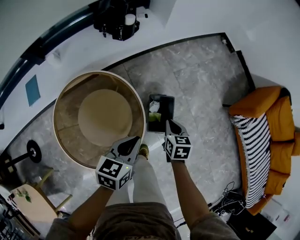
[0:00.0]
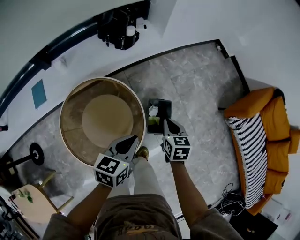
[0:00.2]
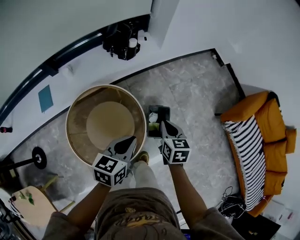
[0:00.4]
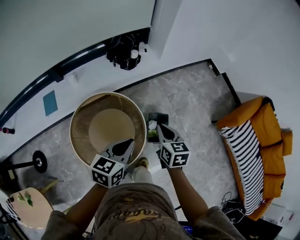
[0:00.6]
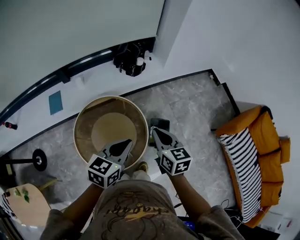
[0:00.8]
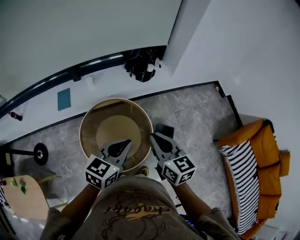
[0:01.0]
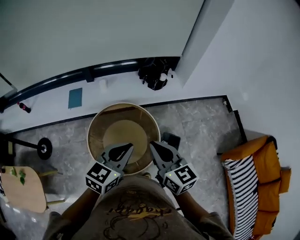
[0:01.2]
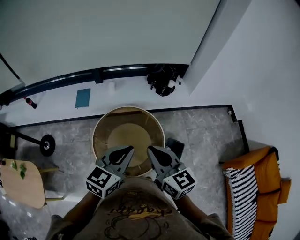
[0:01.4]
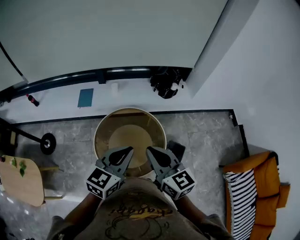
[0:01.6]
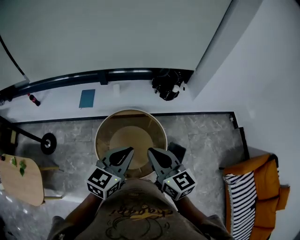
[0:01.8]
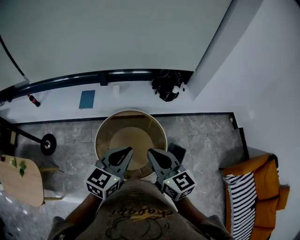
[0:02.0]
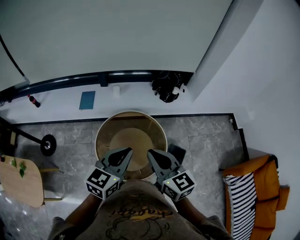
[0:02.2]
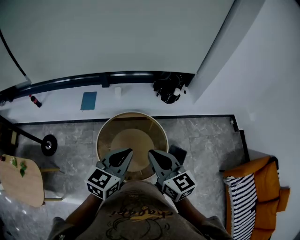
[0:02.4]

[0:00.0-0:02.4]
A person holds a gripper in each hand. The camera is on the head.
0:00.0 to 0:01.2: The two grippers go approximately 35 cm upward. The right gripper points its fingers some 40 degrees further upward, while the left gripper turns by some 30 degrees.
0:01.2 to 0:02.4: Both grippers move to the left, about 5 cm.

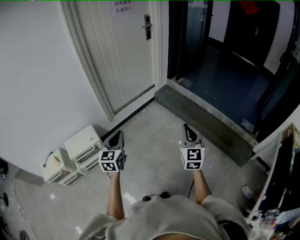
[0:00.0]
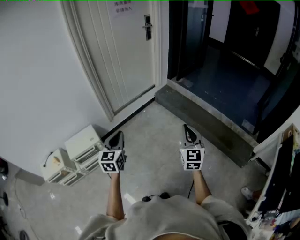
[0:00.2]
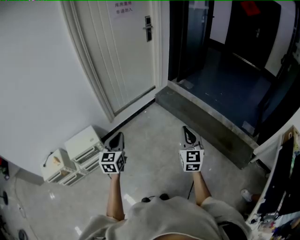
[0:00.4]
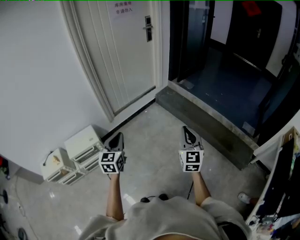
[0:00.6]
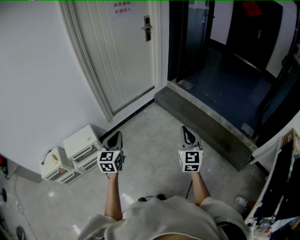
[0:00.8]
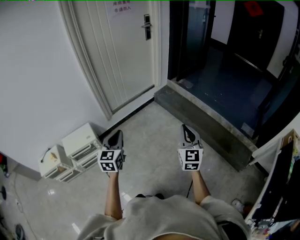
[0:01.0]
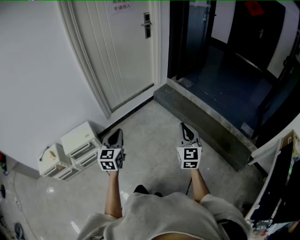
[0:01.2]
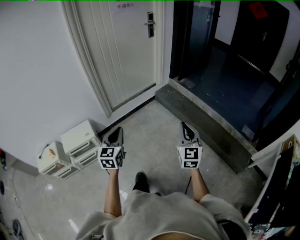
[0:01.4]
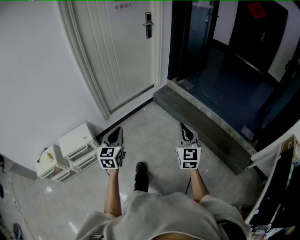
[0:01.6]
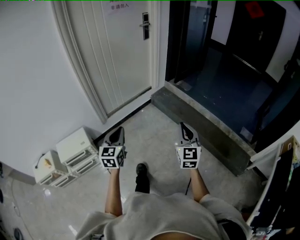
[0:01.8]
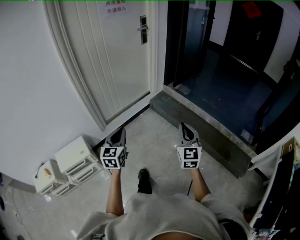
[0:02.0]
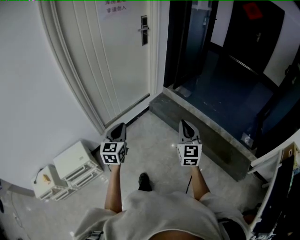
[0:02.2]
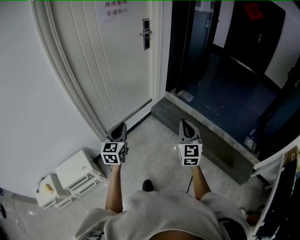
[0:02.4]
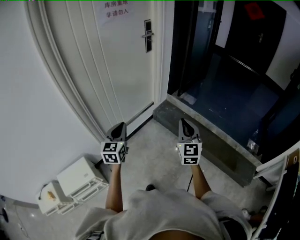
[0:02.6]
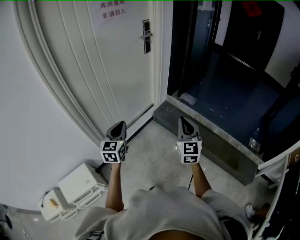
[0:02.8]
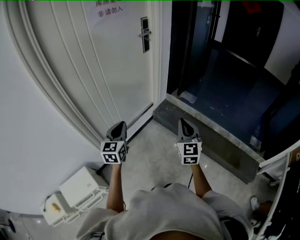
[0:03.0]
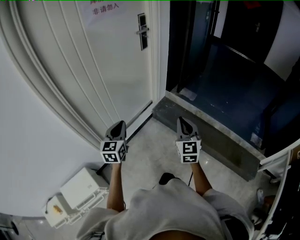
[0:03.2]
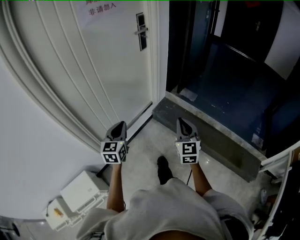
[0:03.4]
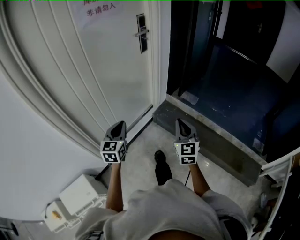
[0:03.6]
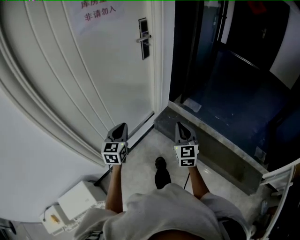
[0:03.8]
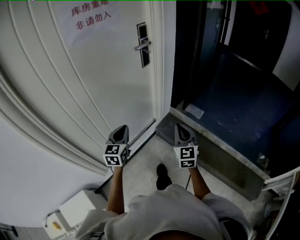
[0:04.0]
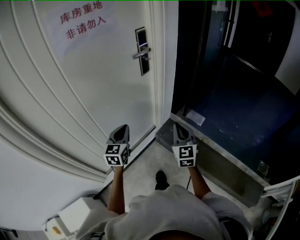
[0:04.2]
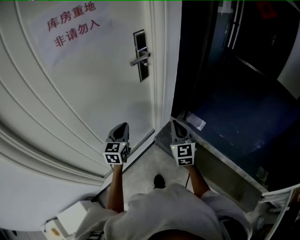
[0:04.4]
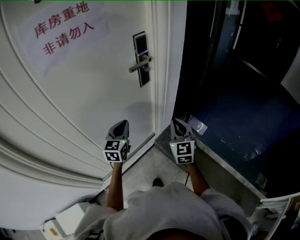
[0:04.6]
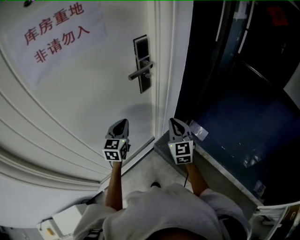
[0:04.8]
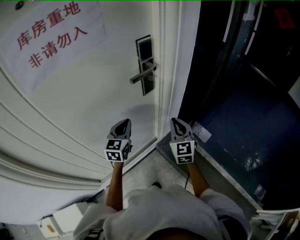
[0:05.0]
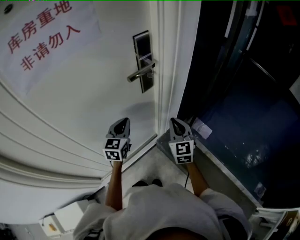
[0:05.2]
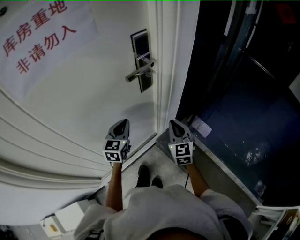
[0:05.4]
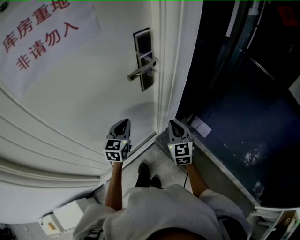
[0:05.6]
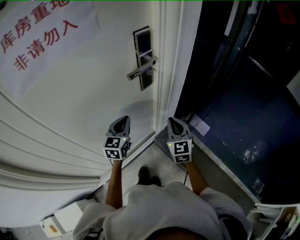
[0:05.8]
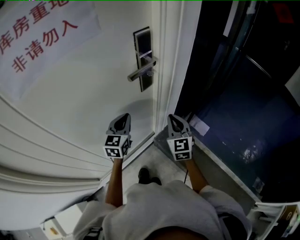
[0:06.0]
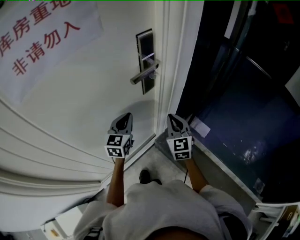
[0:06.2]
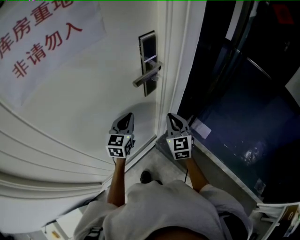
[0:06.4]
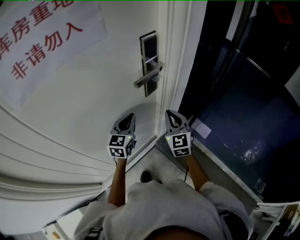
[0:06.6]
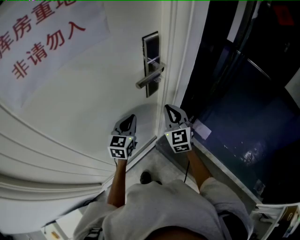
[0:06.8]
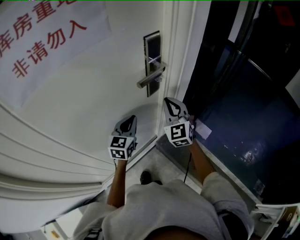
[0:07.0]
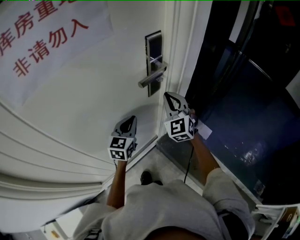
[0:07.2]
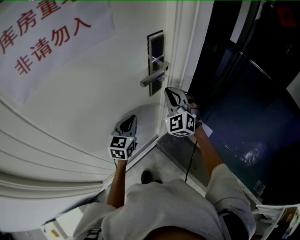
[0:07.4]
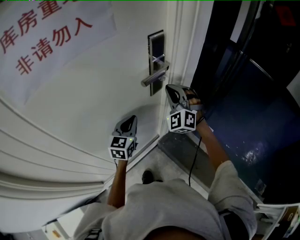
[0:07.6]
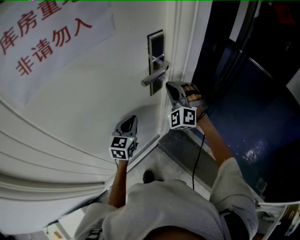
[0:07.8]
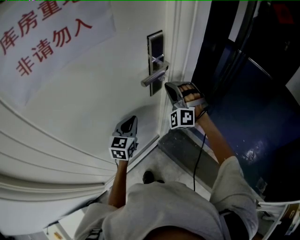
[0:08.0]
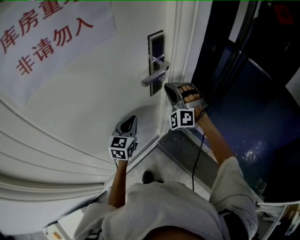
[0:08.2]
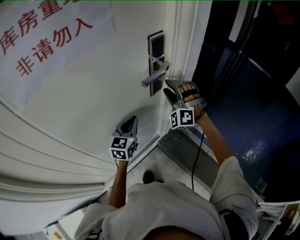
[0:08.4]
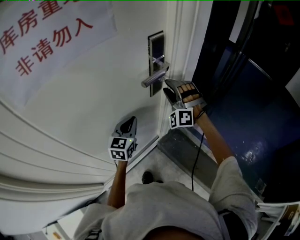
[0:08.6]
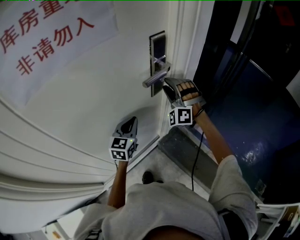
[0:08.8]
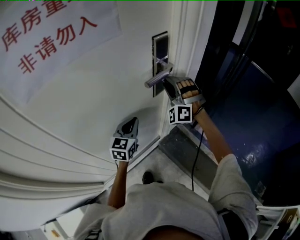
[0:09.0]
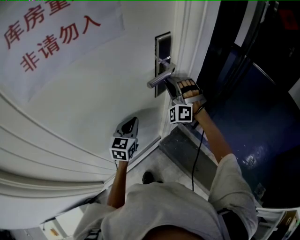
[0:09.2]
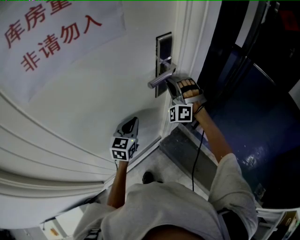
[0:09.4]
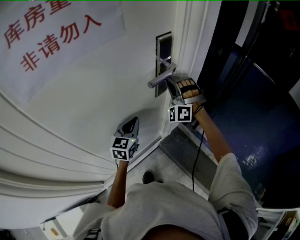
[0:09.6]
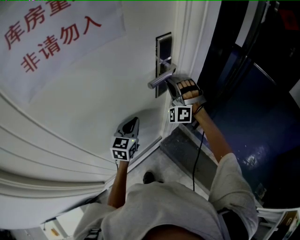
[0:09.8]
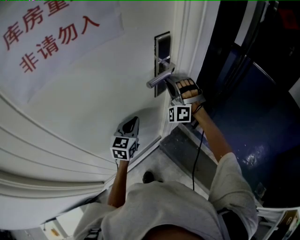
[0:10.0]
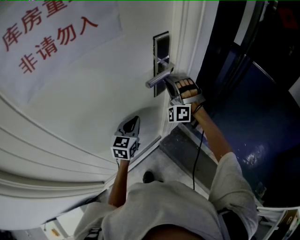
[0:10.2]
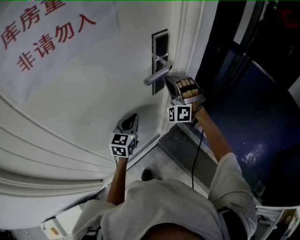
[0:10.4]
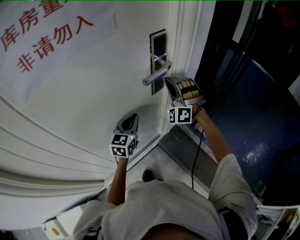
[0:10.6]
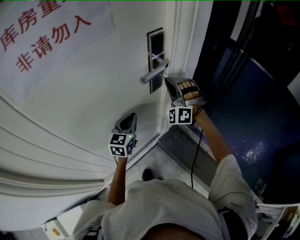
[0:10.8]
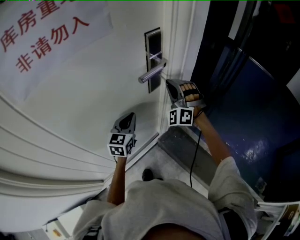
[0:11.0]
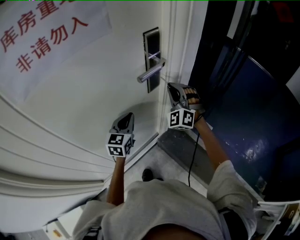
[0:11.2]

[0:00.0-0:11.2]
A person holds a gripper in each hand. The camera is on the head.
0:00.0 to 0:01.6: The left gripper shifts approximately 10 cm forward and to the right. Meanwhile the right gripper travels forward by approximately 5 cm.
0:01.6 to 0:03.2: The two grippers travel together, forward, about 50 cm.
0:03.2 to 0:04.8: The pair of grippers is taken forward, some 60 cm.
0:04.8 to 0:06.4: The grippers both shift forward by approximately 10 cm.
0:06.4 to 0:08.0: The right gripper heads forward and upward, covering about 10 cm, and rolls counterclockwise, seen from behind, by about 70 degrees.
0:08.0 to 0:09.6: The right gripper opens, then closes once more.
0:09.6 to 0:11.2: The right gripper travels to the right by approximately 5 cm, and changes its angle by some 20 degrees.

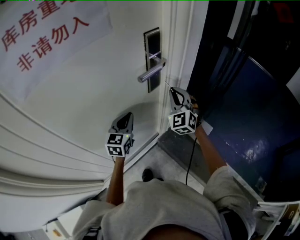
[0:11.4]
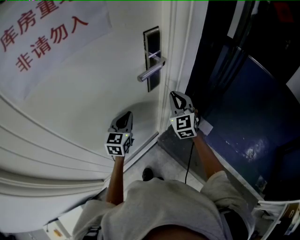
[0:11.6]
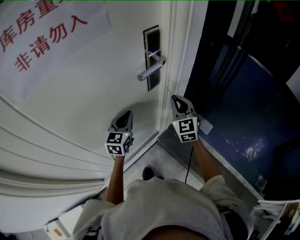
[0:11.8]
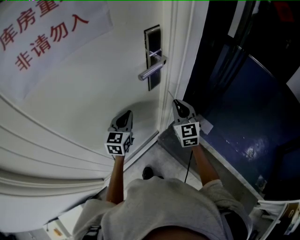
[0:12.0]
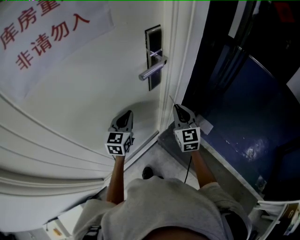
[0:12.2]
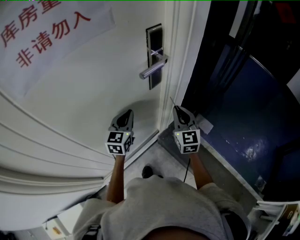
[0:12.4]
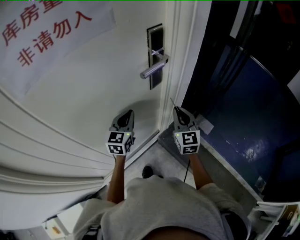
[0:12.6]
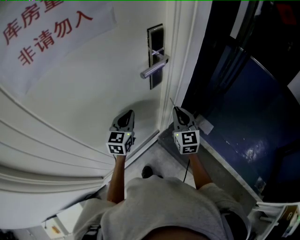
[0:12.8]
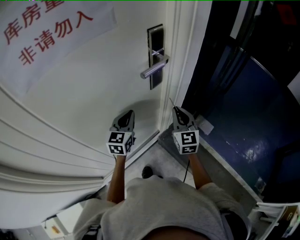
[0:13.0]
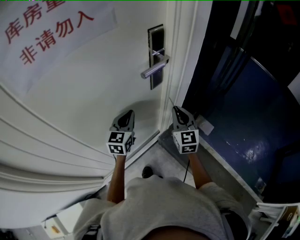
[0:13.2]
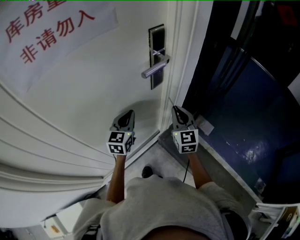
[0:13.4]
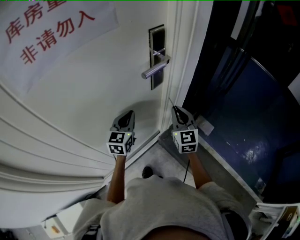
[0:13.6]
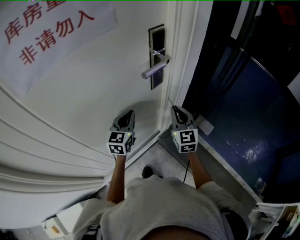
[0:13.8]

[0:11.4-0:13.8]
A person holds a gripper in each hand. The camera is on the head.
0:11.4 to 0:12.6: The right gripper goes about 10 cm backward, and swivels about 40 degrees.
0:12.6 to 0:13.8: The two grippers keep their place.

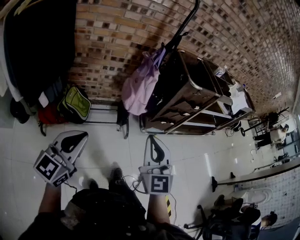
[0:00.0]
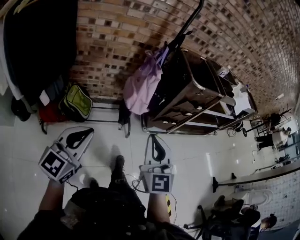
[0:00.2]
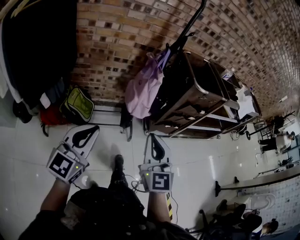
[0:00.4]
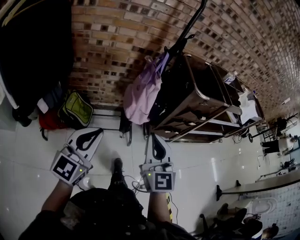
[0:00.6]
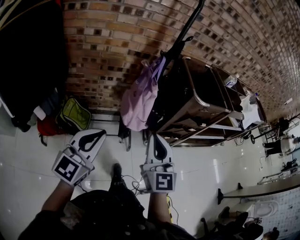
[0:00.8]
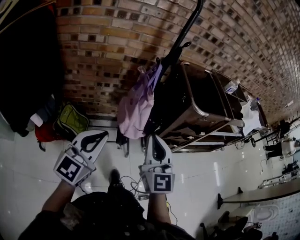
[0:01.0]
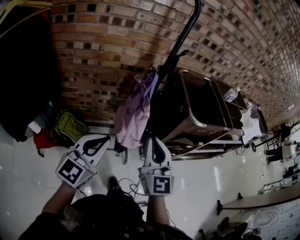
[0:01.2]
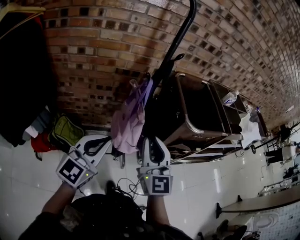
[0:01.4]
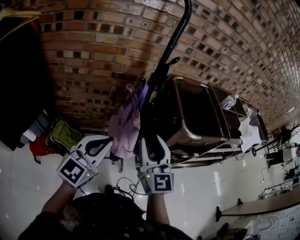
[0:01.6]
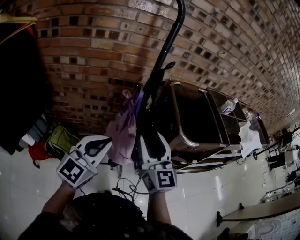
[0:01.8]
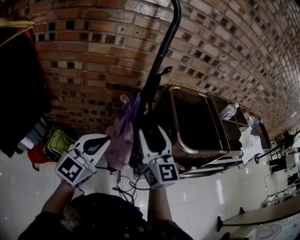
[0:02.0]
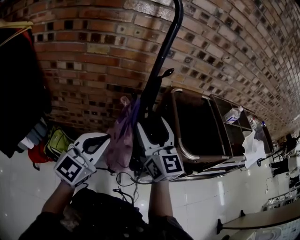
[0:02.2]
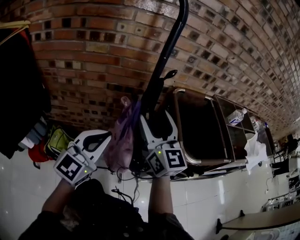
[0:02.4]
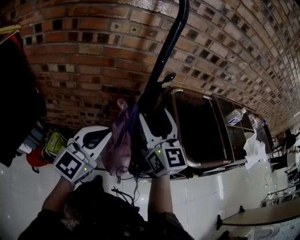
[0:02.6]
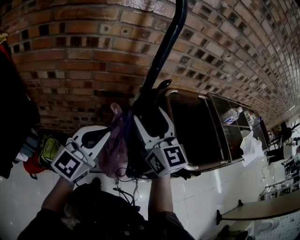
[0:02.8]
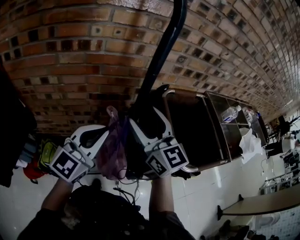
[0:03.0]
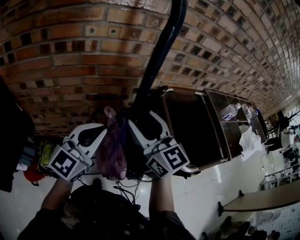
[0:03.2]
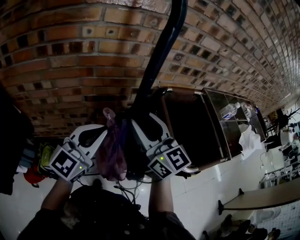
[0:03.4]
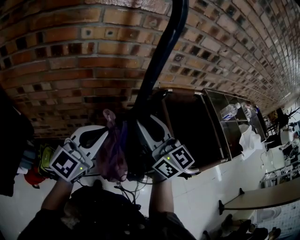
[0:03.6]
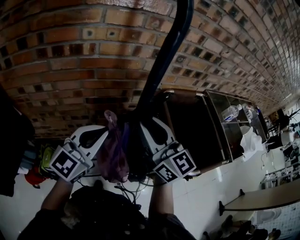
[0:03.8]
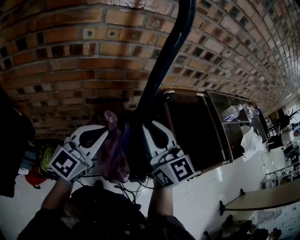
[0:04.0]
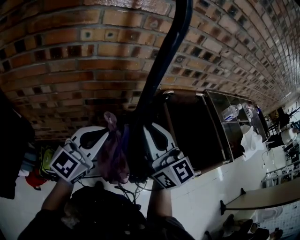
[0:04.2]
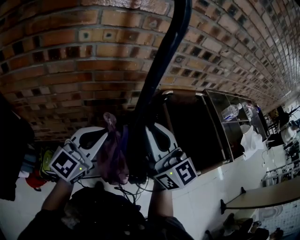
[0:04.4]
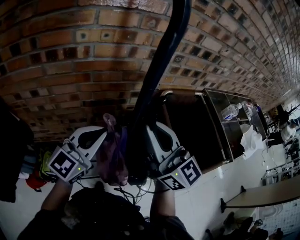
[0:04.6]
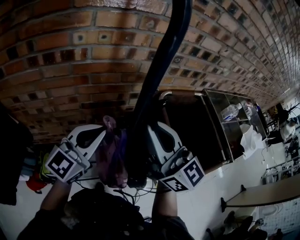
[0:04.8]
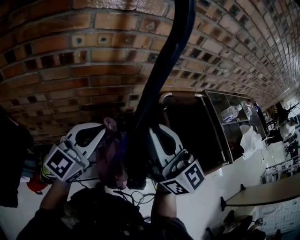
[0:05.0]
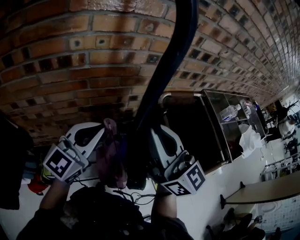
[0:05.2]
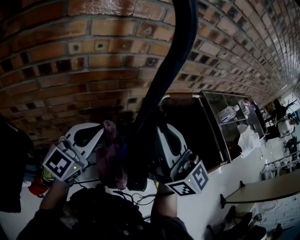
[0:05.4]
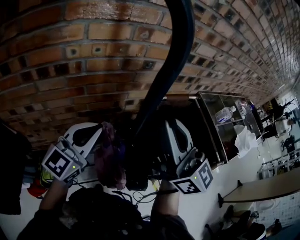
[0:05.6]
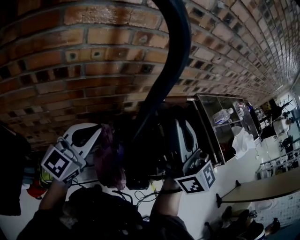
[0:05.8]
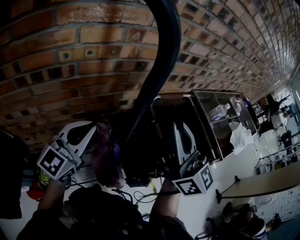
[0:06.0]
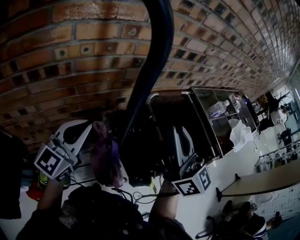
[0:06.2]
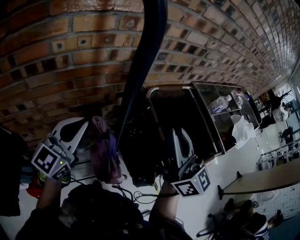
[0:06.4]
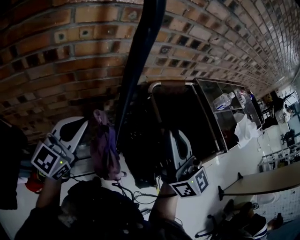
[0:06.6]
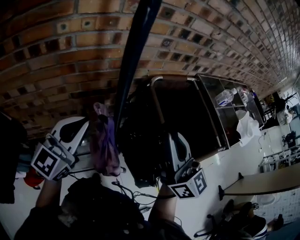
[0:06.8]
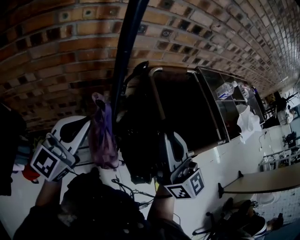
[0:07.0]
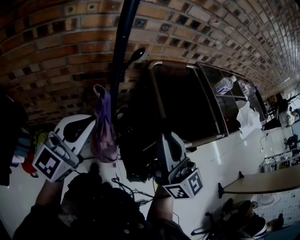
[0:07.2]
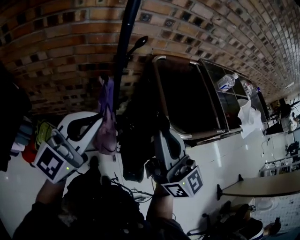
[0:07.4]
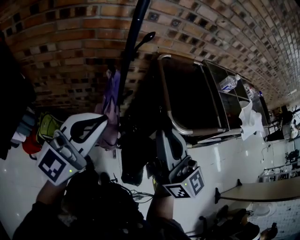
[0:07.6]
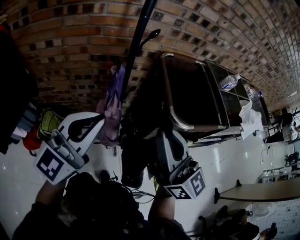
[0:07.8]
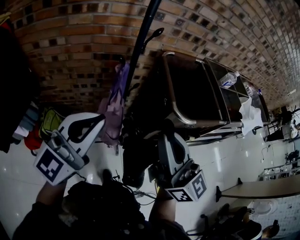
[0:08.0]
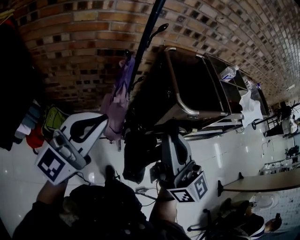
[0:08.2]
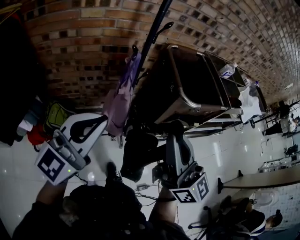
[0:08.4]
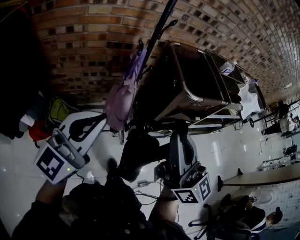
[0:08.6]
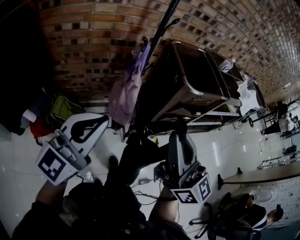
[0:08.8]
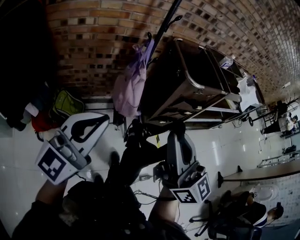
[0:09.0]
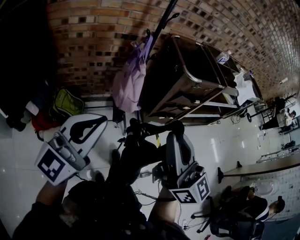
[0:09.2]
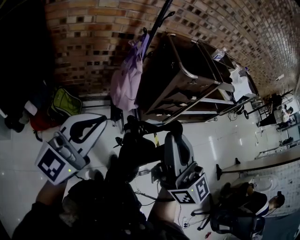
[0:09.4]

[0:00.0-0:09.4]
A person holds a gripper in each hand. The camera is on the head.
0:00.0 to 0:01.6: The left gripper is displaced forward and to the right by some 40 cm; the right gripper shifts about 40 cm forward, and opens.
0:01.6 to 0:03.2: The grippers both shift forward by about 25 cm.
0:03.2 to 0:04.8: The right gripper is displaced upward by roughly 5 cm, and closes.
0:04.8 to 0:06.2: The left gripper changes place by approximately 5 cm. The right gripper shifts approximately 10 cm to the right and upward.
0:06.2 to 0:07.8: Both grippers travel together backward, approximately 25 cm.
0:07.8 to 0:09.4: Both grippers move backward, about 35 cm.
